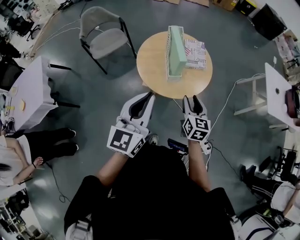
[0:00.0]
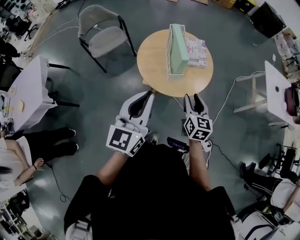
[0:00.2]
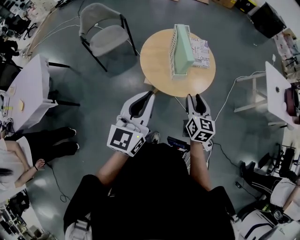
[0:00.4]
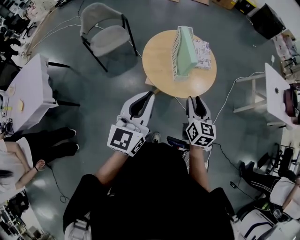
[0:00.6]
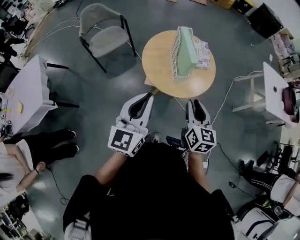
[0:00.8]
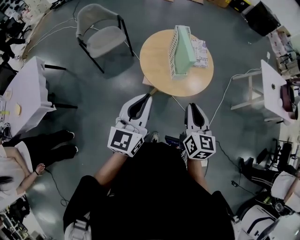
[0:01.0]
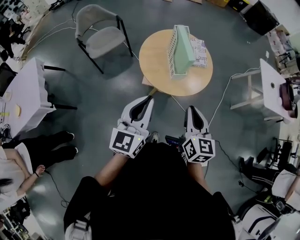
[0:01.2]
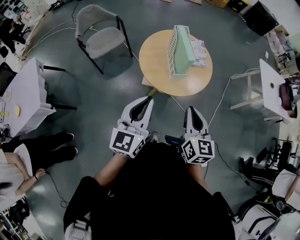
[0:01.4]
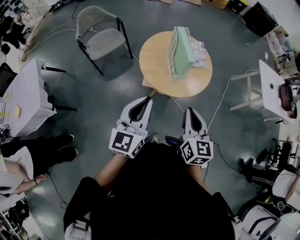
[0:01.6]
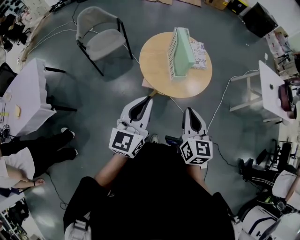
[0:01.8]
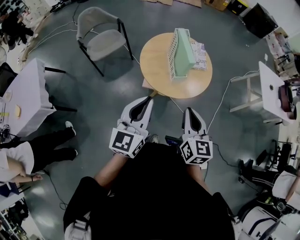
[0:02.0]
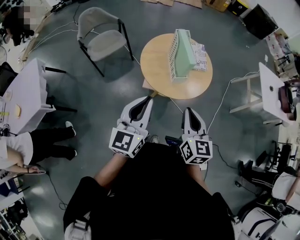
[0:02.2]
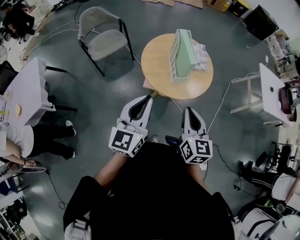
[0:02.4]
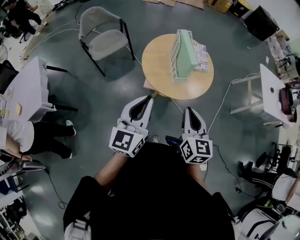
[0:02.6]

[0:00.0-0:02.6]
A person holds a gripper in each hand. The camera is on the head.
0:00.0 to 0:01.2: The right gripper shifts roughly 15 cm upward, backward and to the left, and closes its fingers; the left gripper goes approximately 5 cm to the left.
0:01.2 to 0:02.6: There are only small adjustments of the grippers.

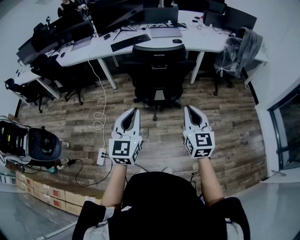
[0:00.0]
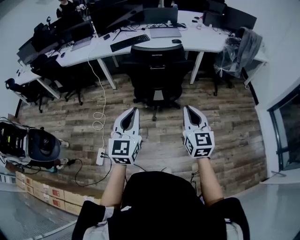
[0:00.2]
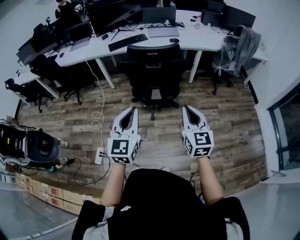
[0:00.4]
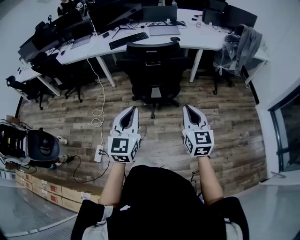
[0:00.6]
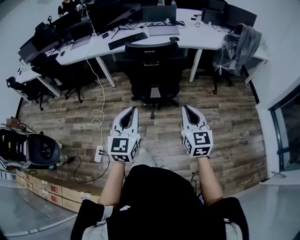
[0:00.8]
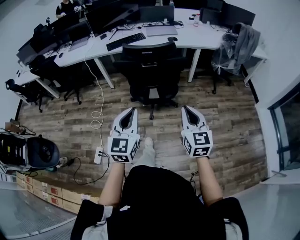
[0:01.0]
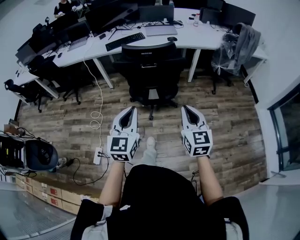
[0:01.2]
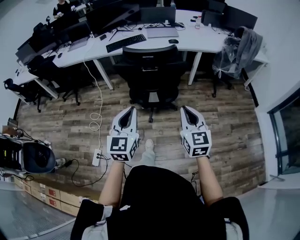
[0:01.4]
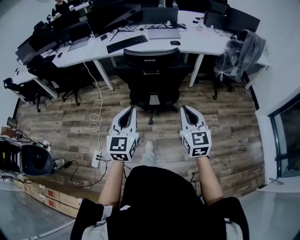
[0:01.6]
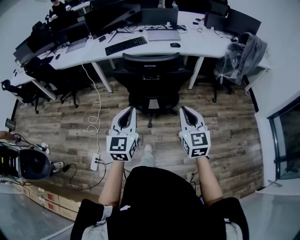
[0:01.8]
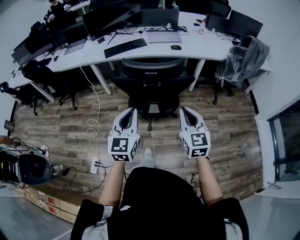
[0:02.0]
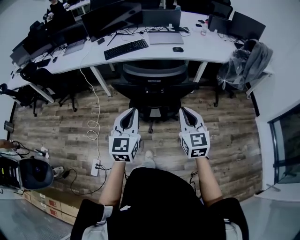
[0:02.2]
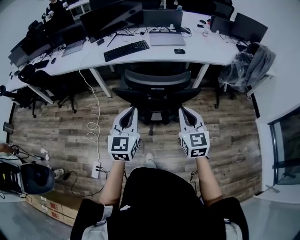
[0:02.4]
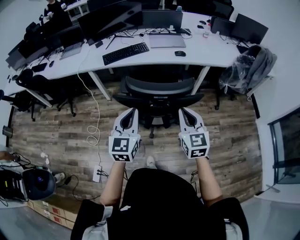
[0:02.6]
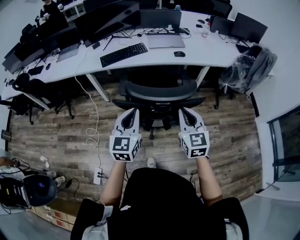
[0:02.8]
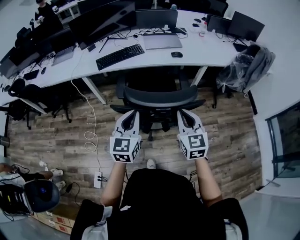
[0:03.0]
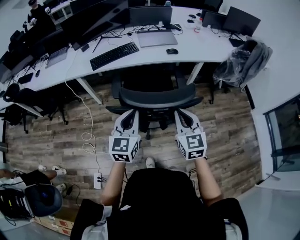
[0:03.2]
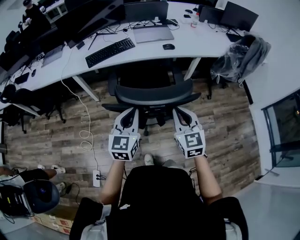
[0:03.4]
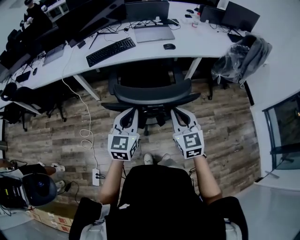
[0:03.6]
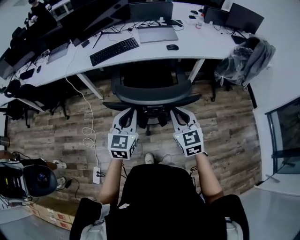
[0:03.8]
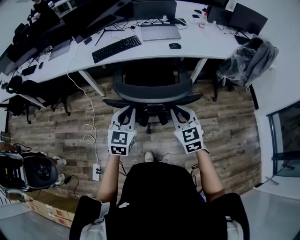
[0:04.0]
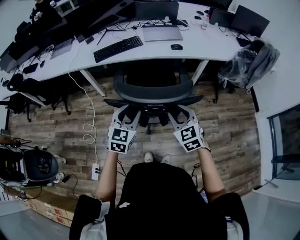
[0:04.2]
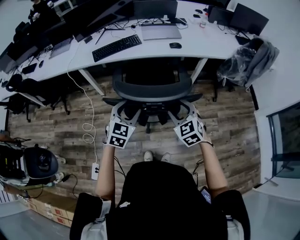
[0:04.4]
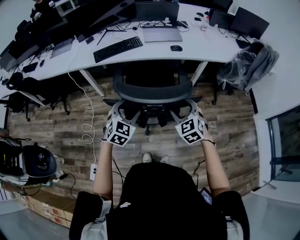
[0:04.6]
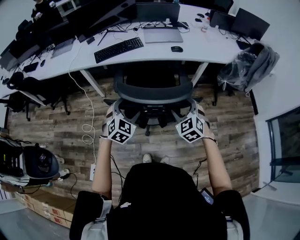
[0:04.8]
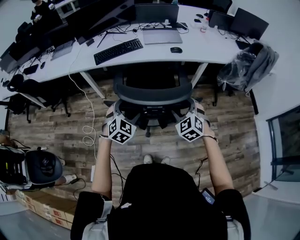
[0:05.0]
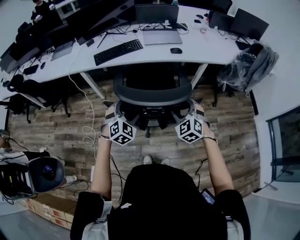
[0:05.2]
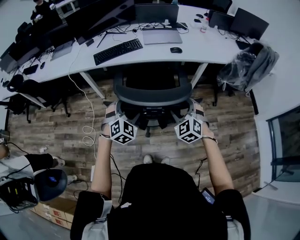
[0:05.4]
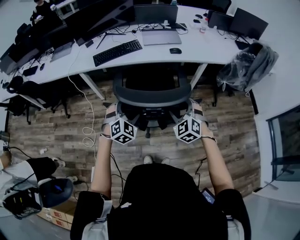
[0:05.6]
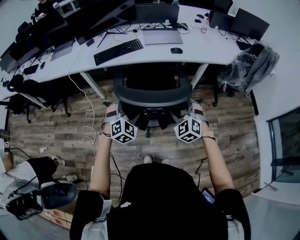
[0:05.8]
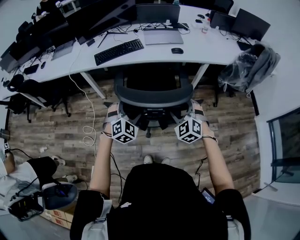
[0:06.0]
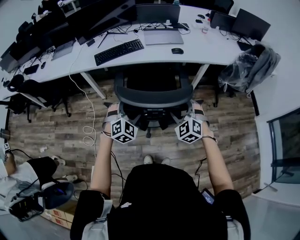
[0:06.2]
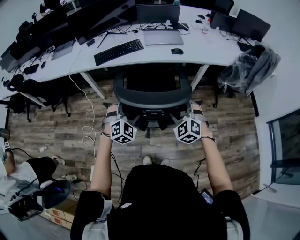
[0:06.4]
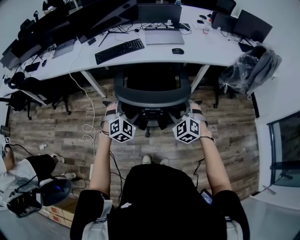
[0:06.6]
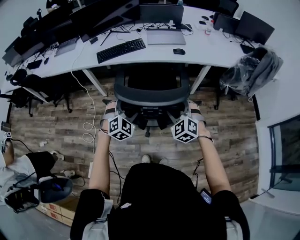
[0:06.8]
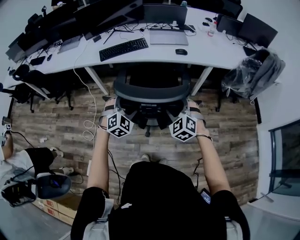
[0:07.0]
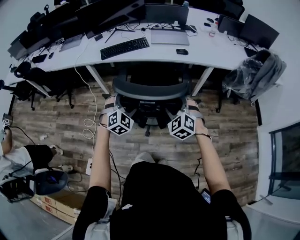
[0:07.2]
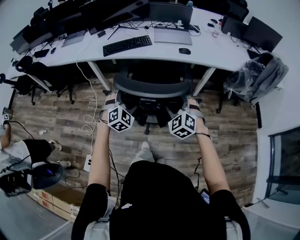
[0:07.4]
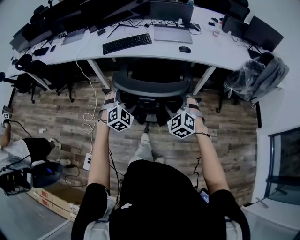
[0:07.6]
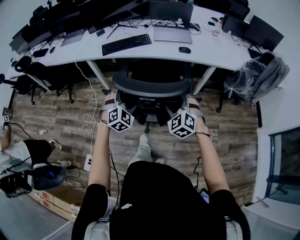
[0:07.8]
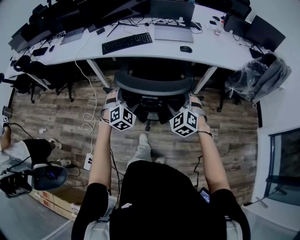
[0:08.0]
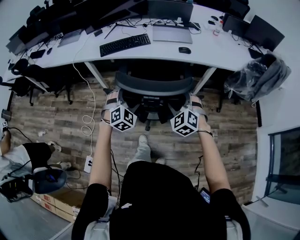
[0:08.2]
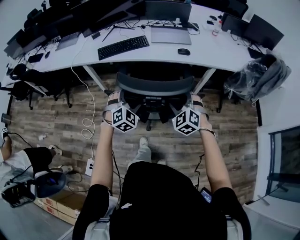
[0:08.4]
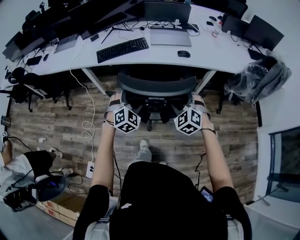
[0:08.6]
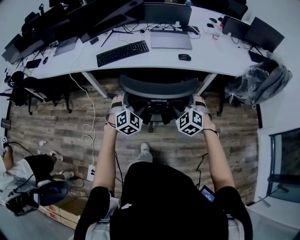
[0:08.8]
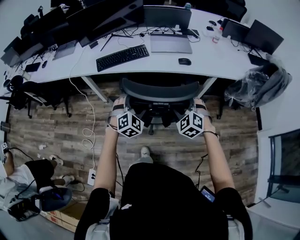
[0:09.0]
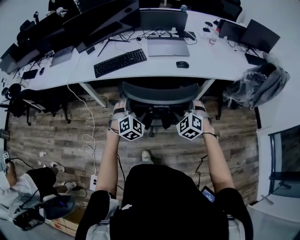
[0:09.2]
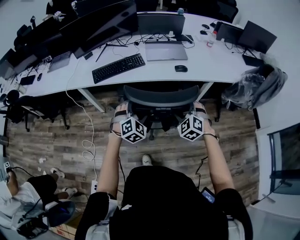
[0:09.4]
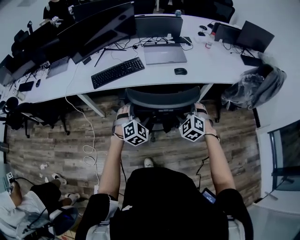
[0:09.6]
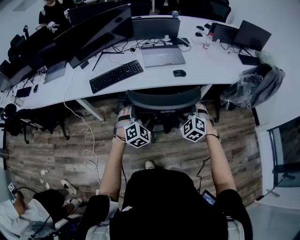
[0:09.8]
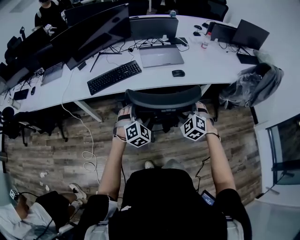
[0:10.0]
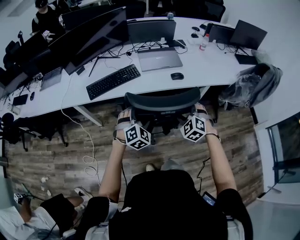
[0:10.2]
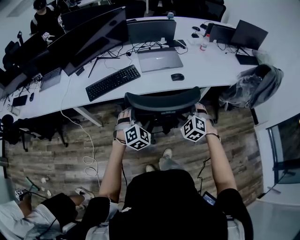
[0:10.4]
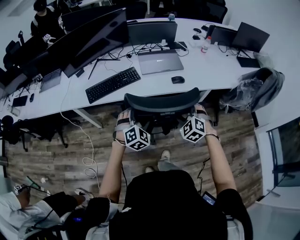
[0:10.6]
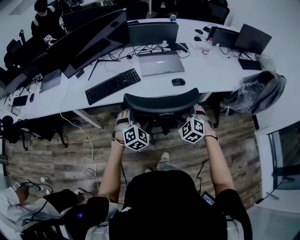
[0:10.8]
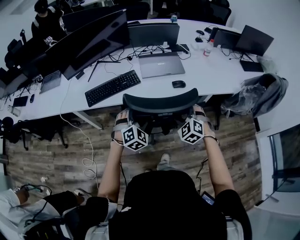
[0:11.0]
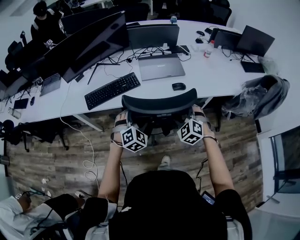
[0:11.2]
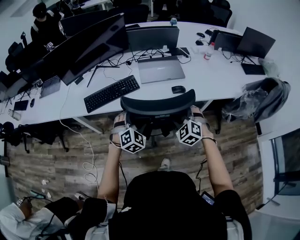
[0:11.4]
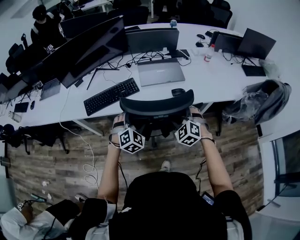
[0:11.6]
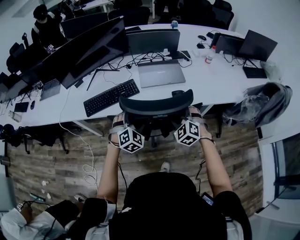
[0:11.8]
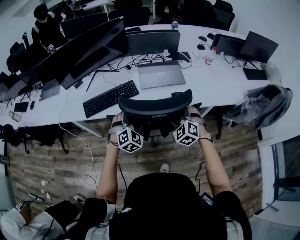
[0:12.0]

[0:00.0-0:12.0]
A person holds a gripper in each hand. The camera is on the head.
0:00.0 to 0:01.6: Both grippers move forward, roughly 5 cm.
0:01.6 to 0:03.0: The two grippers go some 30 cm forward.
0:03.0 to 0:04.4: Both grippers travel together downward, about 10 cm. The right gripper rotates some 30 degrees, and opens; the left gripper changes its angle by about 20 degrees, and opens up.
0:04.4 to 0:06.0: The right gripper changes its angle by about 20 degrees; the left gripper changes place by about 5 cm, turns by approximately 30 degrees, and opens.
0:06.0 to 0:07.6: The grippers make only small movements.
0:07.6 to 0:09.0: Both grippers move forward, about 15 cm.
0:09.0 to 0:10.4: The grippers both shift forward by about 10 cm.
0:10.4 to 0:12.0: The two grippers go roughly 15 cm forward.

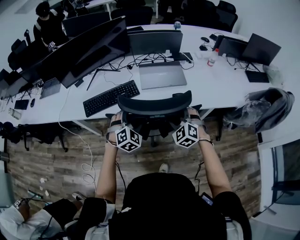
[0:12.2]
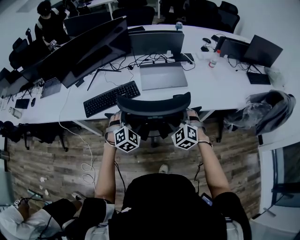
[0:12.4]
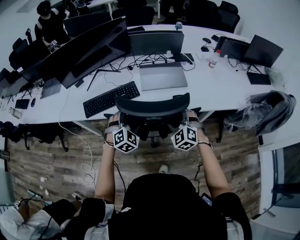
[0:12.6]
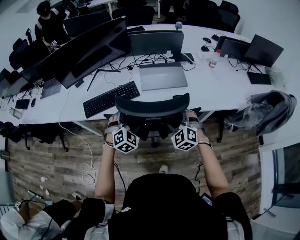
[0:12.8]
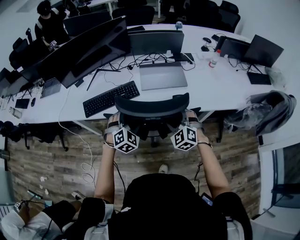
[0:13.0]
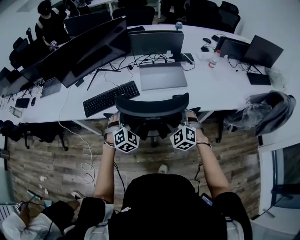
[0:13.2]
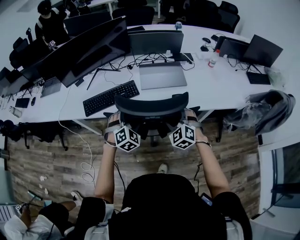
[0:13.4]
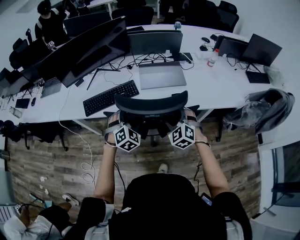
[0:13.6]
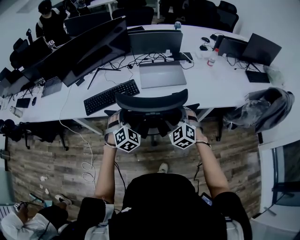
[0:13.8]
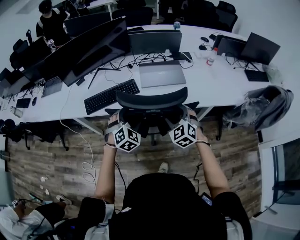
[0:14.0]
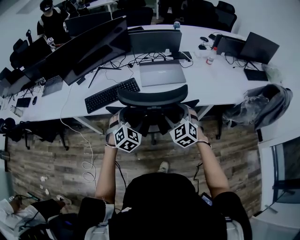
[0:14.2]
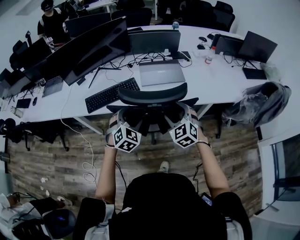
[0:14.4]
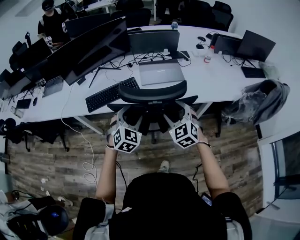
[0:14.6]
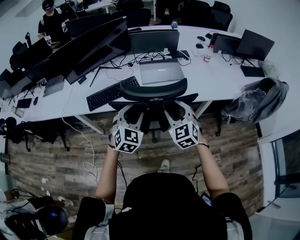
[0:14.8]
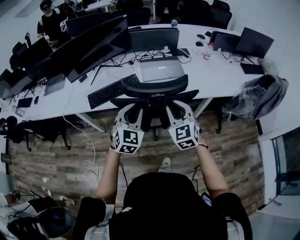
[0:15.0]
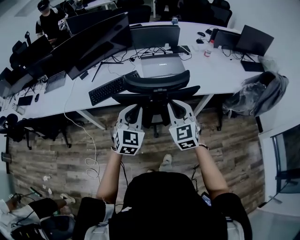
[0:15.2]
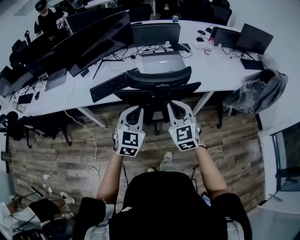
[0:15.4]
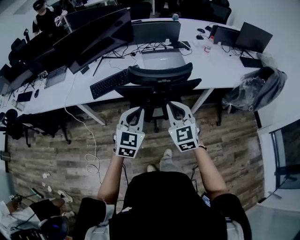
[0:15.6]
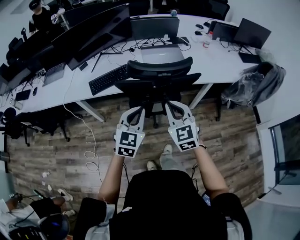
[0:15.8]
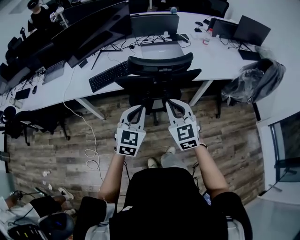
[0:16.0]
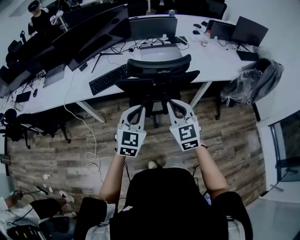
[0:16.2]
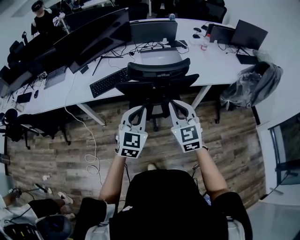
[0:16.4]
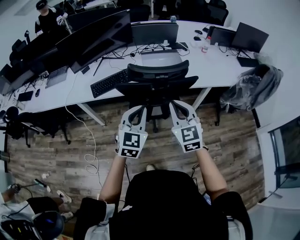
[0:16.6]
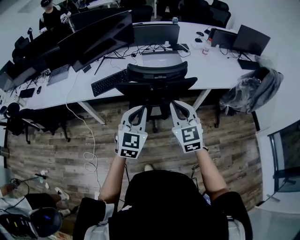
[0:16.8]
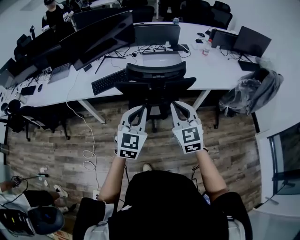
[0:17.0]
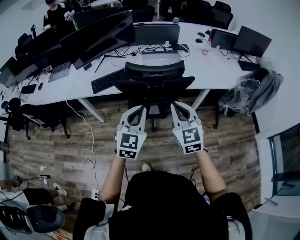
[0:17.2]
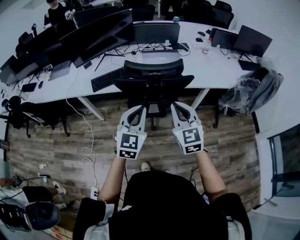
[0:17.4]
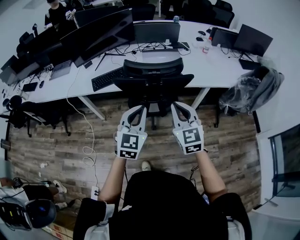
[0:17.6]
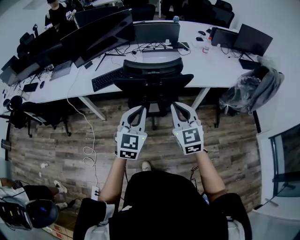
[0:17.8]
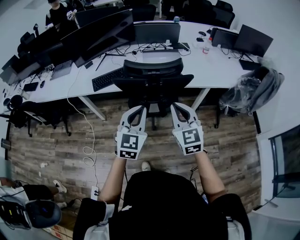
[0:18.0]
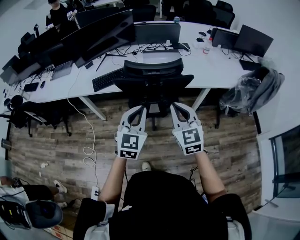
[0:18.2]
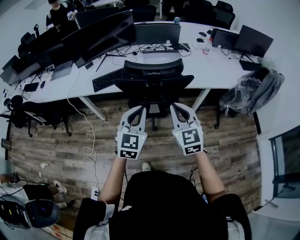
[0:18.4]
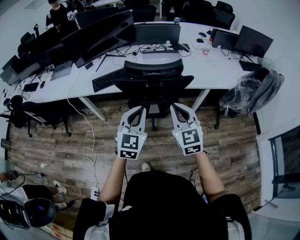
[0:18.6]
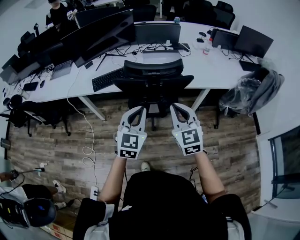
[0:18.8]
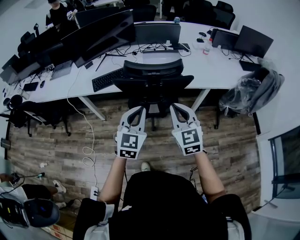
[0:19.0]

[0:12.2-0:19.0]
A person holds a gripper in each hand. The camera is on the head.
0:12.2 to 0:13.6: The grippers stay close to where they were, moving slightly.
0:13.6 to 0:15.0: Both grippers move upward and backward, roughly 15 cm. The left gripper turns by about 30 degrees, and closes its fingers, while the right gripper swivels about 30 degrees, and closes.
0:15.0 to 0:16.2: The grippers both shift backward by about 10 cm.
0:16.2 to 0:17.6: The two grippers go some 5 cm to the right.
0:17.6 to 0:19.0: Both grippers stay about where they are.

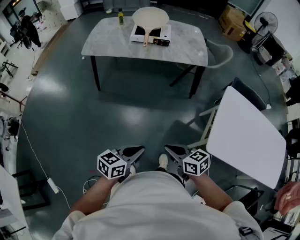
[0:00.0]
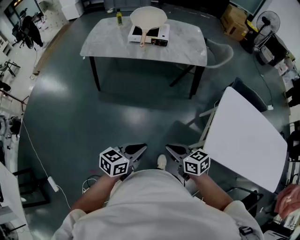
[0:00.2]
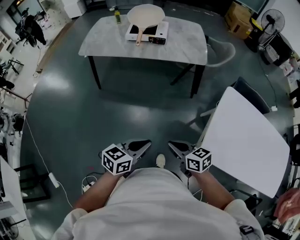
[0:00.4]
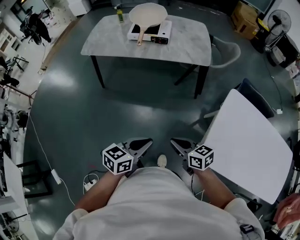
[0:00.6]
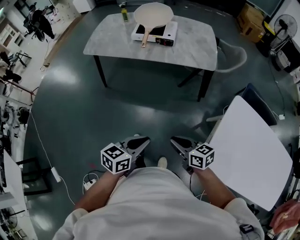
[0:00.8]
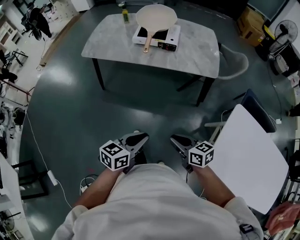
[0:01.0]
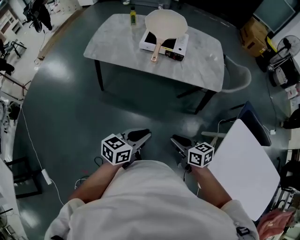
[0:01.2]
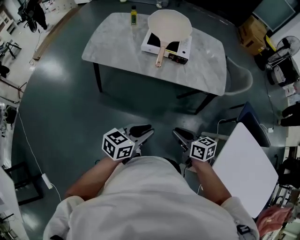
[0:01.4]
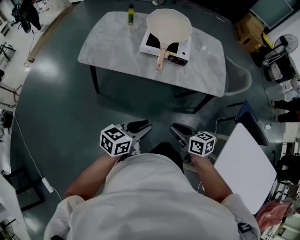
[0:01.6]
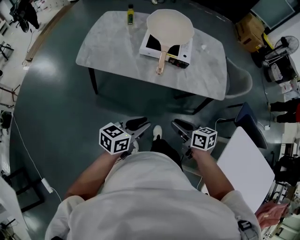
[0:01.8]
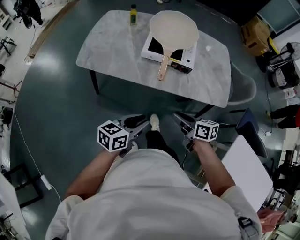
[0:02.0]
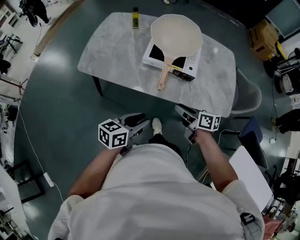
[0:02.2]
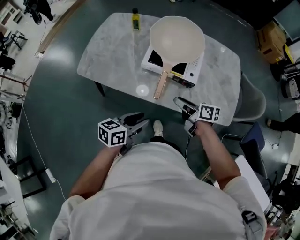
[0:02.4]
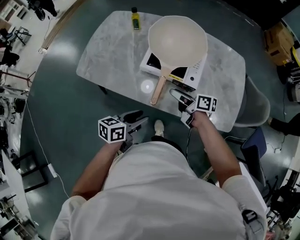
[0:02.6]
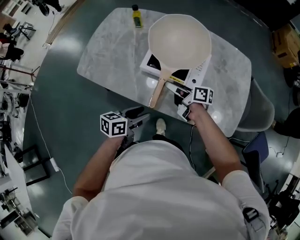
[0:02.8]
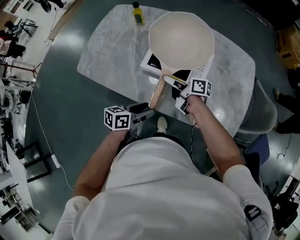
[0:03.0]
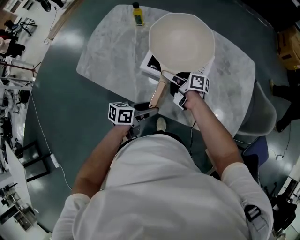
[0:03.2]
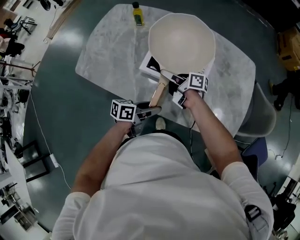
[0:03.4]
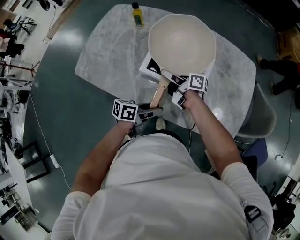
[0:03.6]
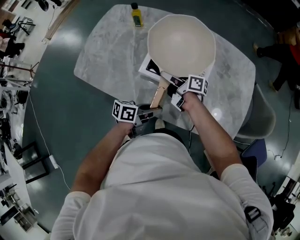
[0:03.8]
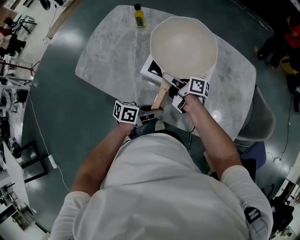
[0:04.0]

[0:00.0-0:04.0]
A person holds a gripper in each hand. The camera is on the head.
0:00.0 to 0:01.4: Both grippers move forward, about 30 cm.
0:01.4 to 0:02.6: The grippers both shift forward by roughly 35 cm. The left gripper rotates some 20 degrees, and opens its fingers; the right gripper changes its angle by some 30 degrees, and opens.
0:02.6 to 0:04.0: The right gripper goes roughly 15 cm forward and to the left, while the left gripper shifts approximately 15 cm forward, to the right and downward.
